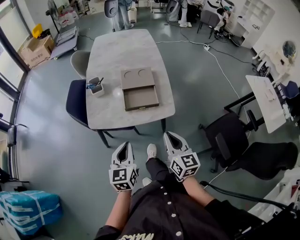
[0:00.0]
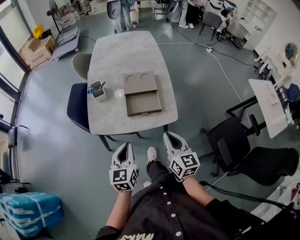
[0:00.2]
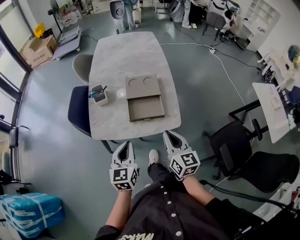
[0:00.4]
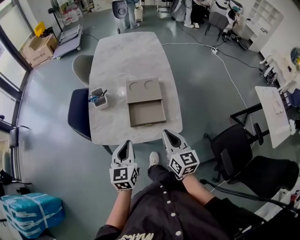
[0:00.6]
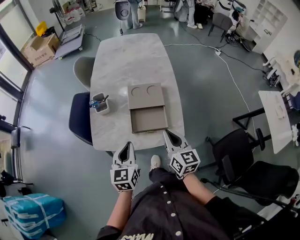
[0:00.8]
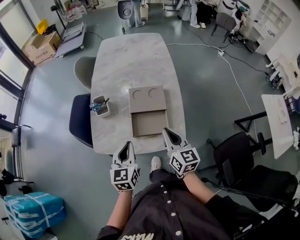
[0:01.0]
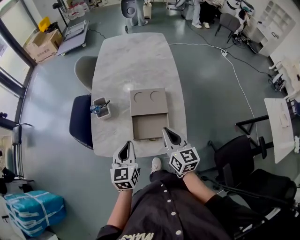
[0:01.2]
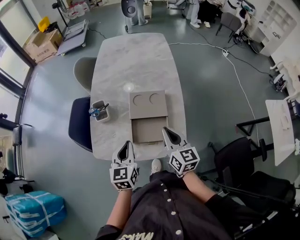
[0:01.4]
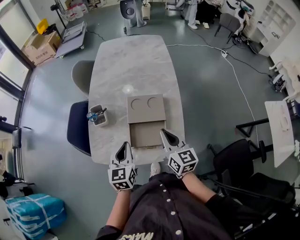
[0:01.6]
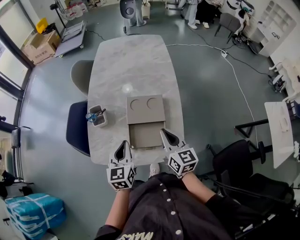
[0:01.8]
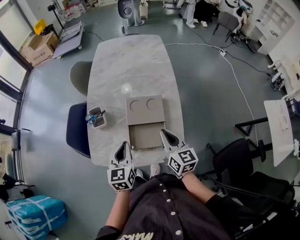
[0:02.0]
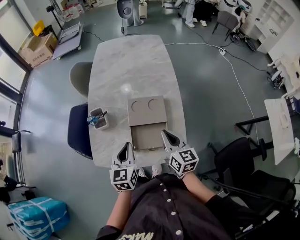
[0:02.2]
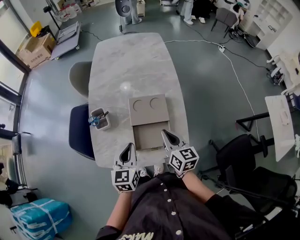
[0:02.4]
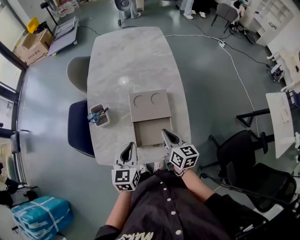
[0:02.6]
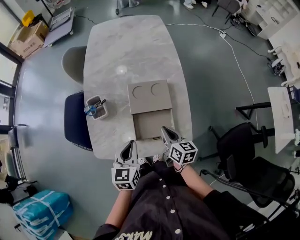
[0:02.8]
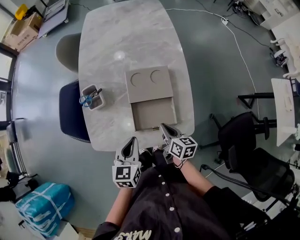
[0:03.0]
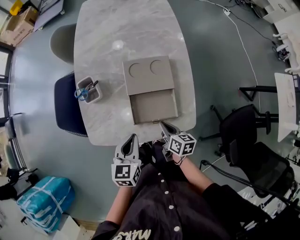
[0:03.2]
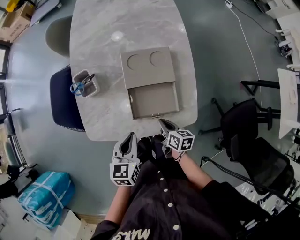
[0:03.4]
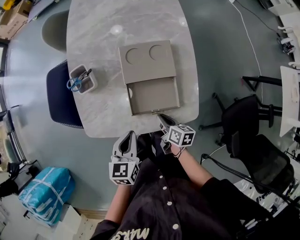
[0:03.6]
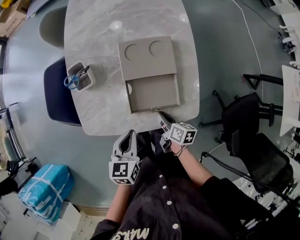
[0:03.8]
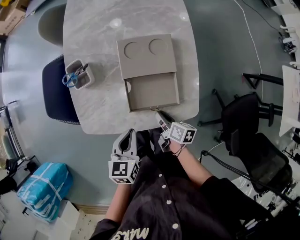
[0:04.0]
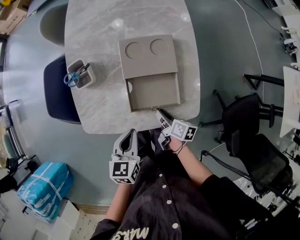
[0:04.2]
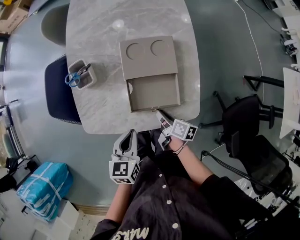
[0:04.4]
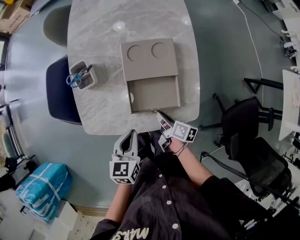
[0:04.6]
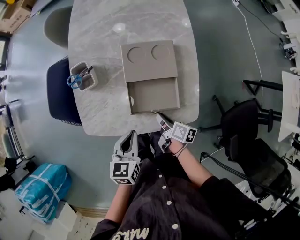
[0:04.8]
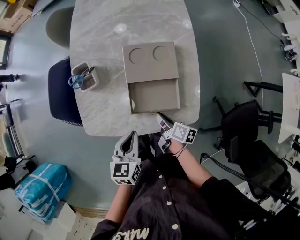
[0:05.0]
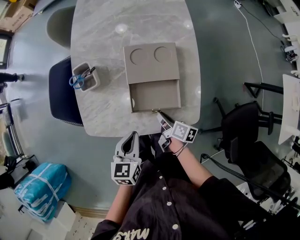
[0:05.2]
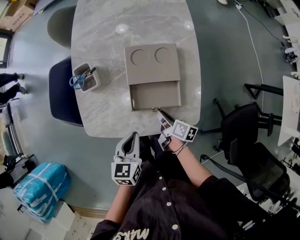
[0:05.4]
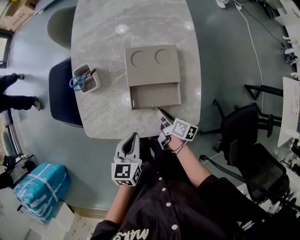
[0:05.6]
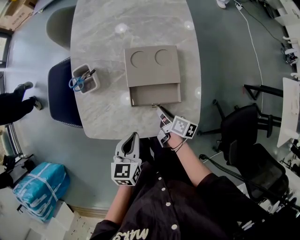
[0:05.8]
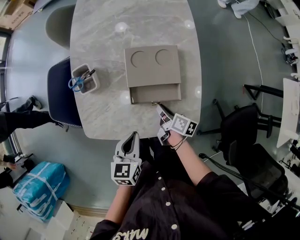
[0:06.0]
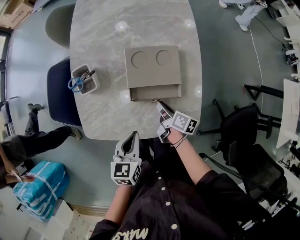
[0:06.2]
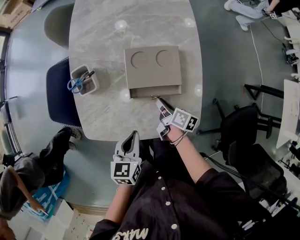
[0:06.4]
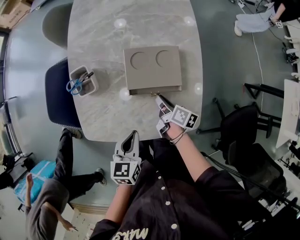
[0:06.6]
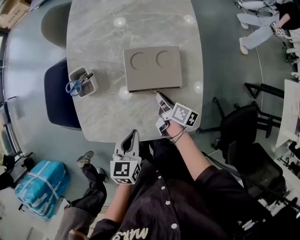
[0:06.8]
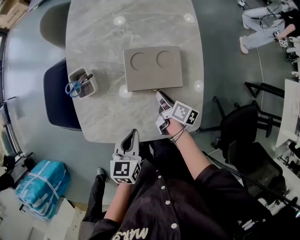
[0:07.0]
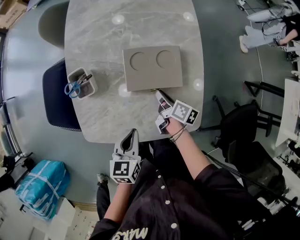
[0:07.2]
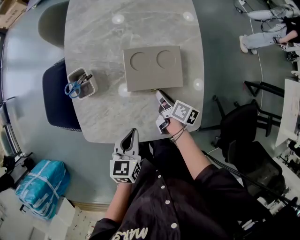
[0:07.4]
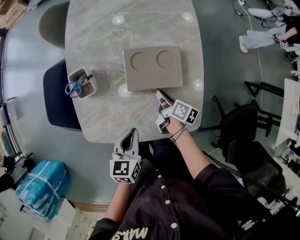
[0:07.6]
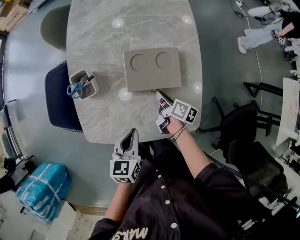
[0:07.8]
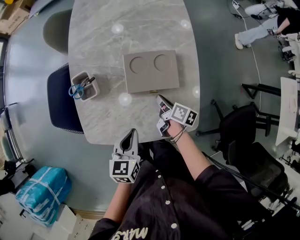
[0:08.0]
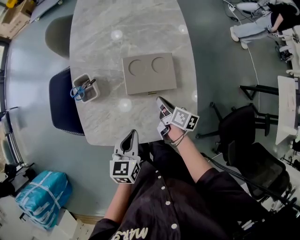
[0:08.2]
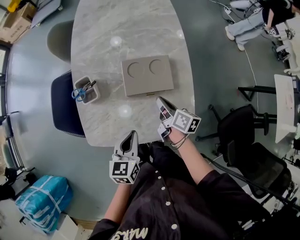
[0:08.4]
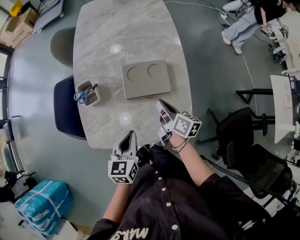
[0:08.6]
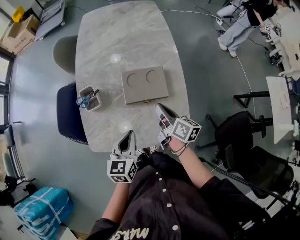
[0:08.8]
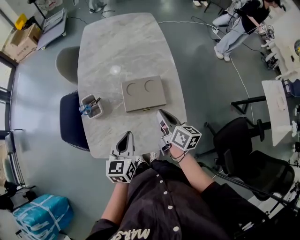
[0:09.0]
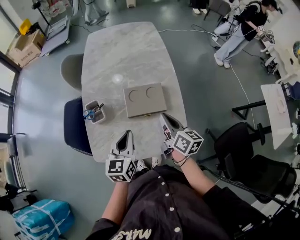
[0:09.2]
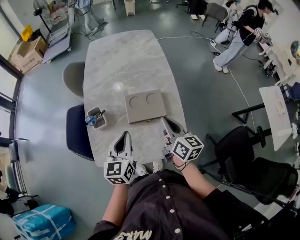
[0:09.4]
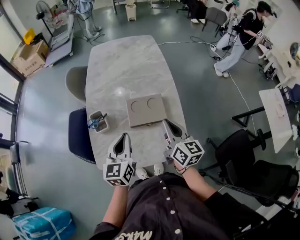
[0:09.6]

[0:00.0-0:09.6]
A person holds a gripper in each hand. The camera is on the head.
0:00.0 to 0:01.6: Both grippers travel together forward, about 30 cm.
0:01.6 to 0:03.2: The left gripper heads downward, covering roughly 10 cm; the right gripper is displaced downward by some 20 cm, and changes its angle by approximately 40 degrees.
0:03.2 to 0:04.8: The right gripper goes some 5 cm downward, and turns by about 20 degrees.
0:04.8 to 0:06.4: The right gripper shifts some 10 cm forward.
0:06.4 to 0:08.0: The grippers move only a little.
0:08.0 to 0:09.6: The left gripper goes approximately 15 cm upward, and rotates roughly 20 degrees; the right gripper is displaced upward by about 30 cm, and twists roughly 40 degrees counterclockwise, seen from behind.

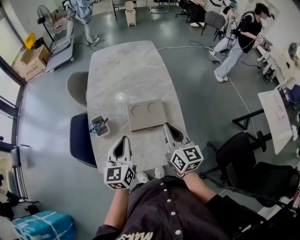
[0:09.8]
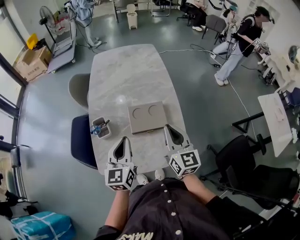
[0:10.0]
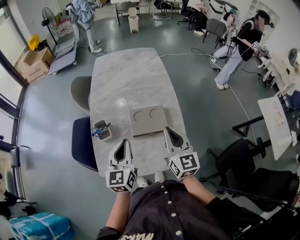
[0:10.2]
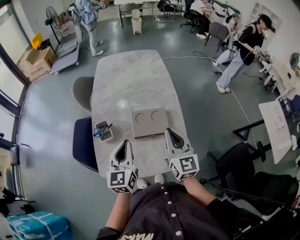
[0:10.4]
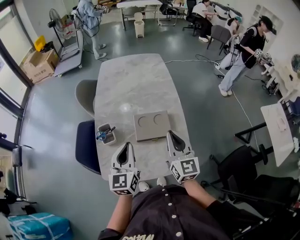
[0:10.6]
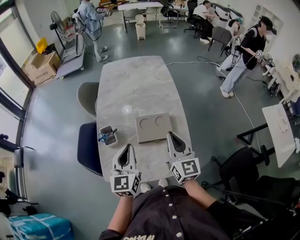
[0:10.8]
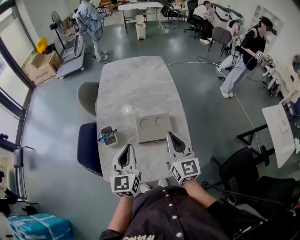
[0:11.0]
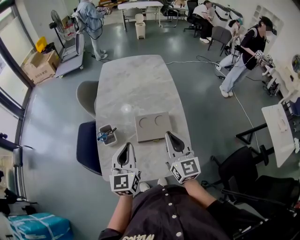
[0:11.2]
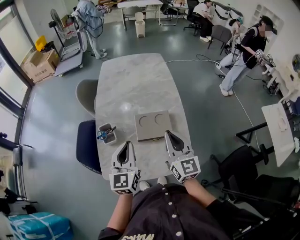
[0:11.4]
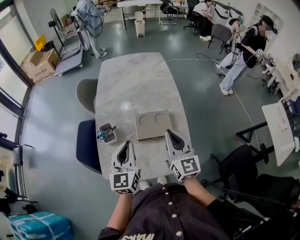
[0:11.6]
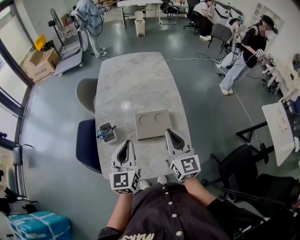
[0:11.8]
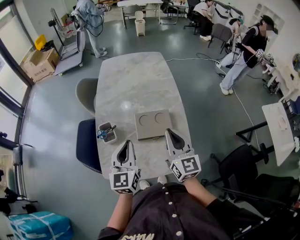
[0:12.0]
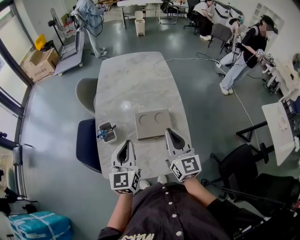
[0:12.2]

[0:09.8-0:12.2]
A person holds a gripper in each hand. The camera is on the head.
0:09.8 to 0:11.0: There are only small adjustments of the grippers.
0:11.0 to 0:12.2: Both grippers stay put.

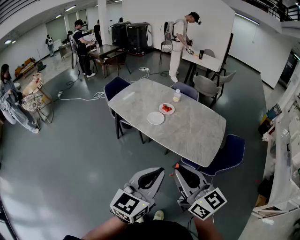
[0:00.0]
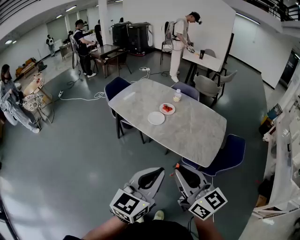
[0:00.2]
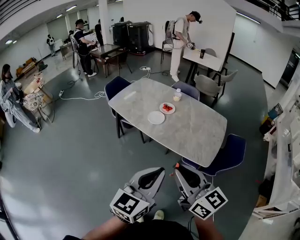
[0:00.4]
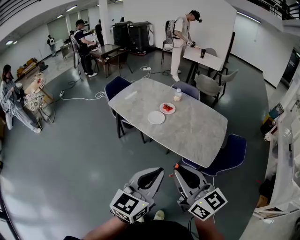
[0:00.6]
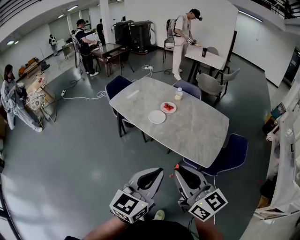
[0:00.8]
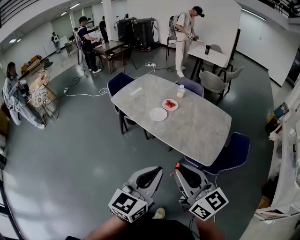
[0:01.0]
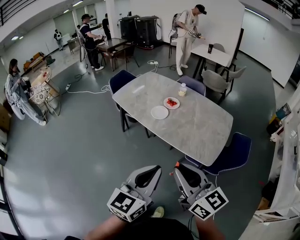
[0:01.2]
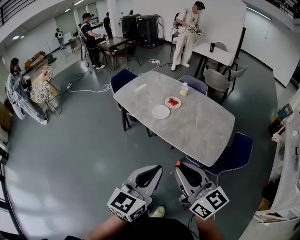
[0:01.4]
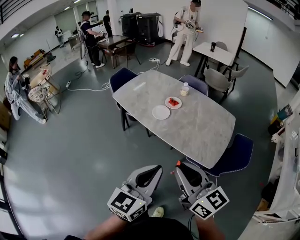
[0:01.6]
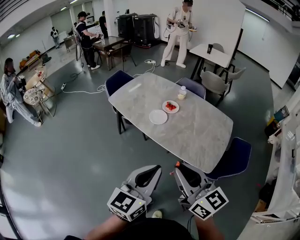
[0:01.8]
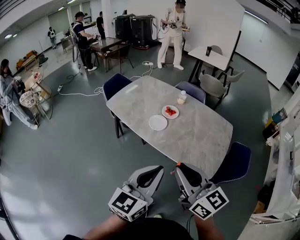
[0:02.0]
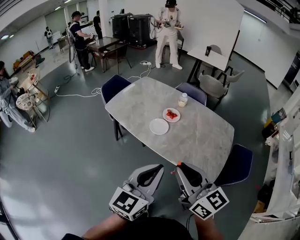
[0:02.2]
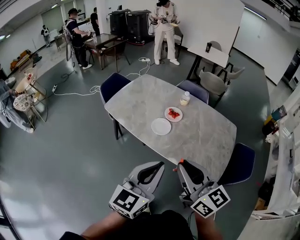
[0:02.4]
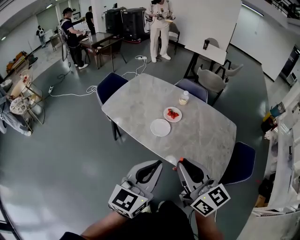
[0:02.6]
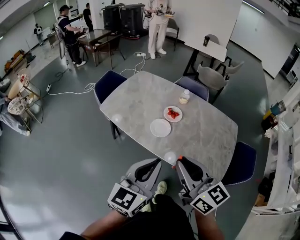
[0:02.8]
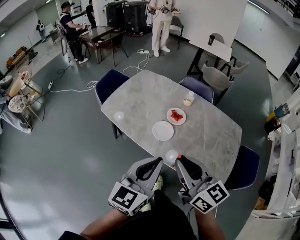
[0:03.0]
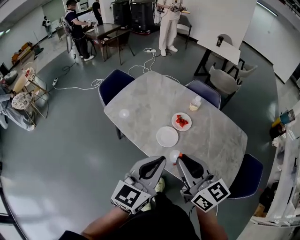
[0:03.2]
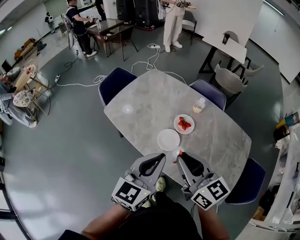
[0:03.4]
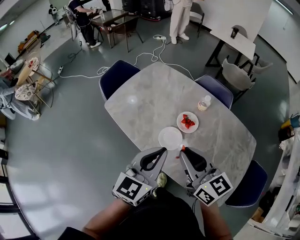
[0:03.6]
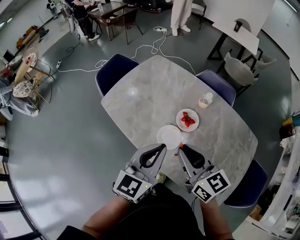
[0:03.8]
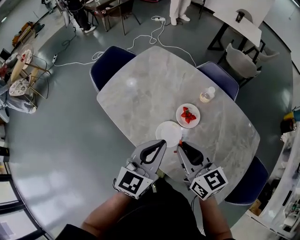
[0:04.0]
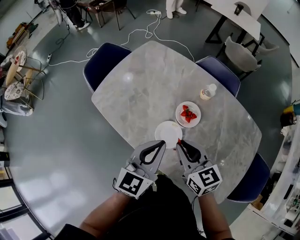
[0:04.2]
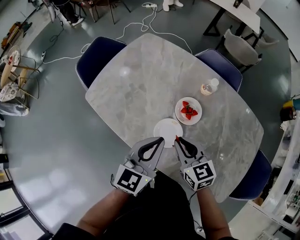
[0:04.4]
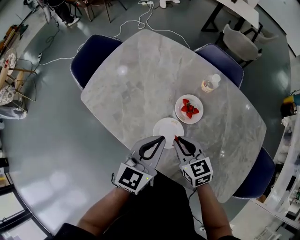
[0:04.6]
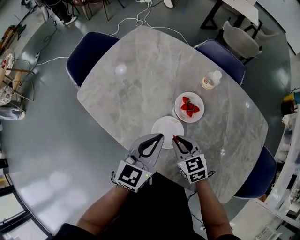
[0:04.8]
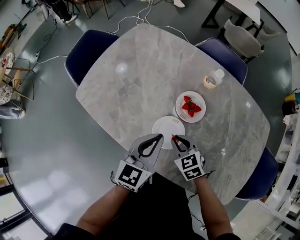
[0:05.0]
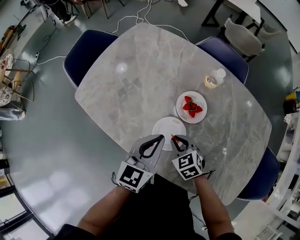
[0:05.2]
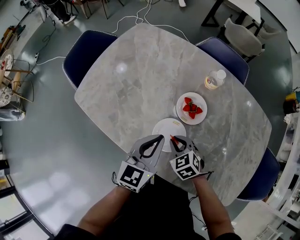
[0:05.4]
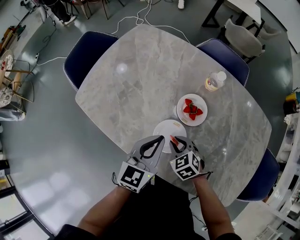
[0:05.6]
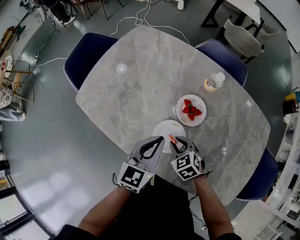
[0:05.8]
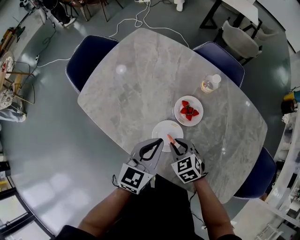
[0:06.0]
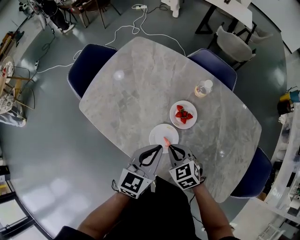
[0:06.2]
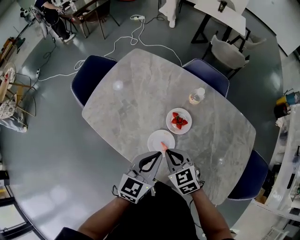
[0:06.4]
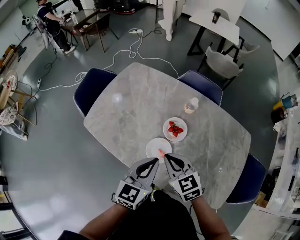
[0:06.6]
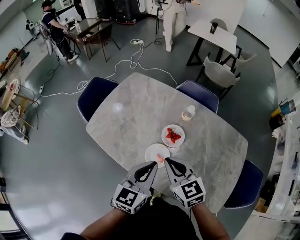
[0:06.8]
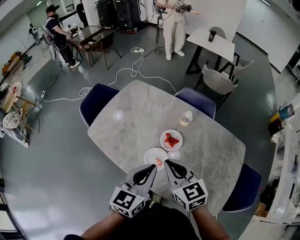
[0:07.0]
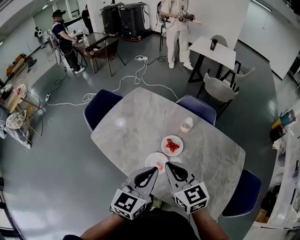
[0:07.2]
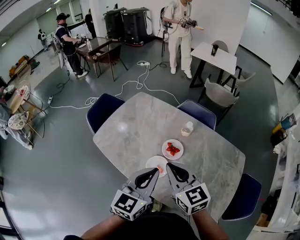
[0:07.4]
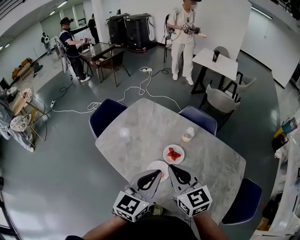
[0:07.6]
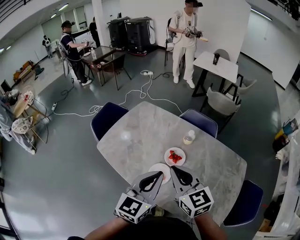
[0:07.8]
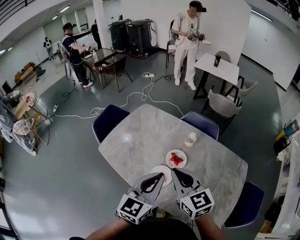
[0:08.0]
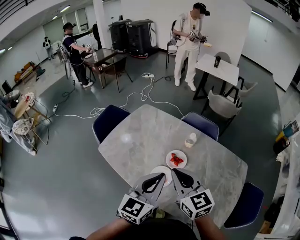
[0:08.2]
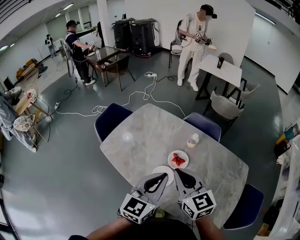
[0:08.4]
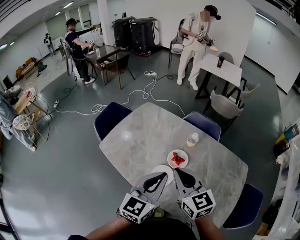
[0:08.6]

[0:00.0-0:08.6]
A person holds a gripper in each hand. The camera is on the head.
0:00.0 to 0:01.4: The grippers make only small movements.
0:01.4 to 0:02.8: Both grippers move forward, about 25 cm.
0:02.8 to 0:04.4: The grippers both shift forward and downward by some 40 cm. The right gripper changes its angle by some 30 degrees.
0:04.4 to 0:05.8: The right gripper goes approximately 20 cm downward, and turns by approximately 30 degrees. The left gripper heads downward, covering about 10 cm.
0:05.8 to 0:07.2: The right gripper travels upward by roughly 35 cm, and angles its fingers upward, by approximately 40 degrees. The left gripper is displaced upward and backward by roughly 25 cm.
0:07.2 to 0:08.6: The grippers move only a little.

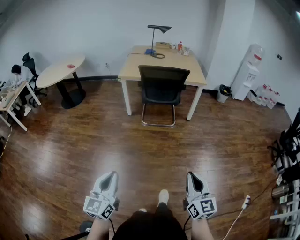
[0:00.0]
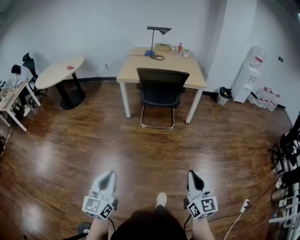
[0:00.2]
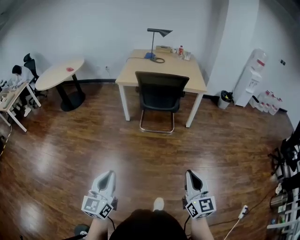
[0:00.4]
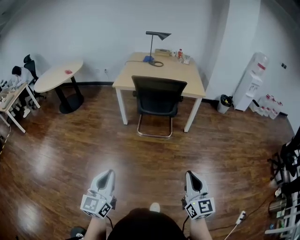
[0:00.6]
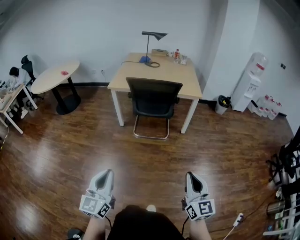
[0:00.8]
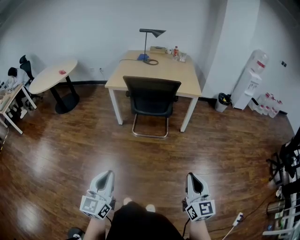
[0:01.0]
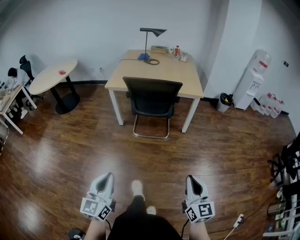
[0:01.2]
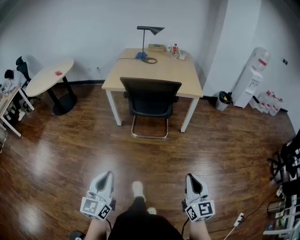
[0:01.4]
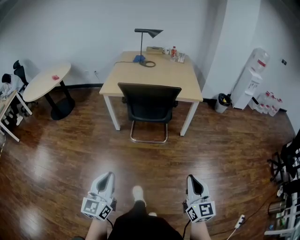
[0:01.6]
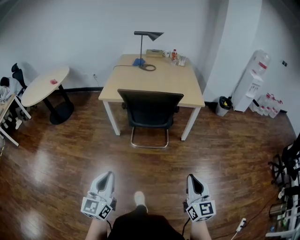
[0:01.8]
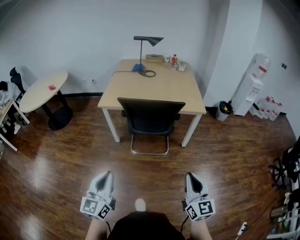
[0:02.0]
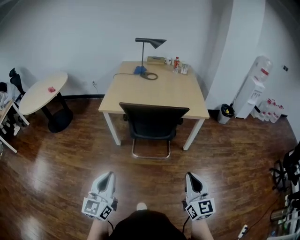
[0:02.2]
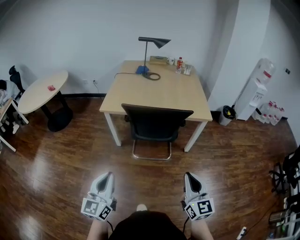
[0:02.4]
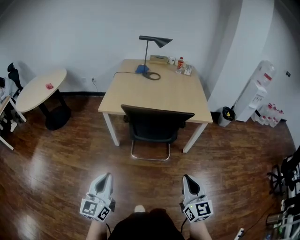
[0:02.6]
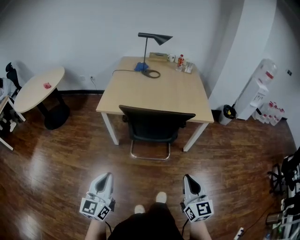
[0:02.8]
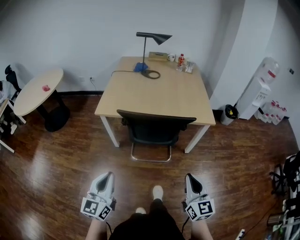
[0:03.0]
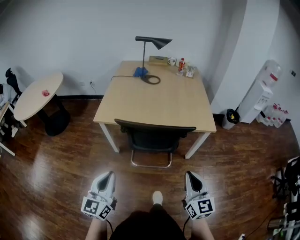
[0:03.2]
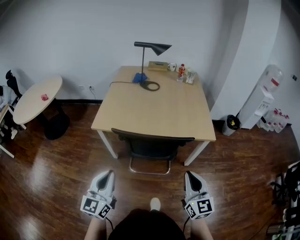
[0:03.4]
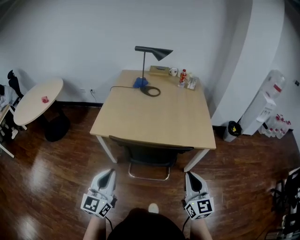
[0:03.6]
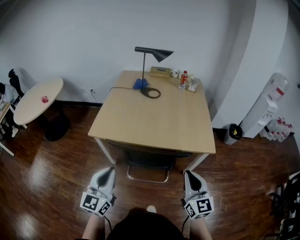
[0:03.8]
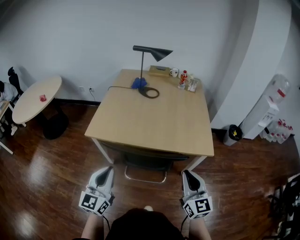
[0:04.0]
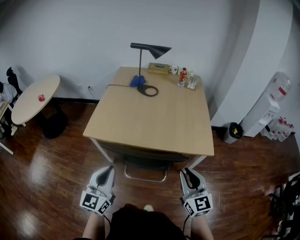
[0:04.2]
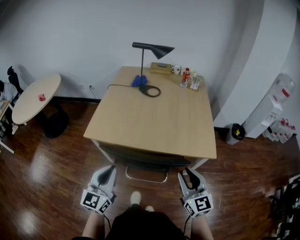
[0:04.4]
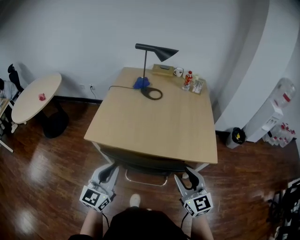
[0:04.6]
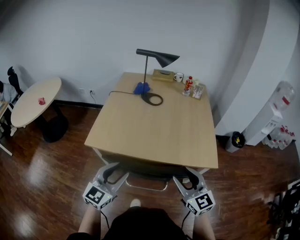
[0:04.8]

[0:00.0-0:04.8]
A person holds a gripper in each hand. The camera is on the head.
0:00.0 to 0:01.6: The grippers both shift forward and to the right by about 25 cm.
0:01.6 to 0:03.2: Both grippers travel together forward, some 30 cm.
0:03.2 to 0:04.8: The left gripper is displaced forward and to the right by some 25 cm, rotates roughly 20 degrees, and opens up; the right gripper is displaced forward by roughly 25 cm, rotates roughly 20 degrees, and opens its fingers.
